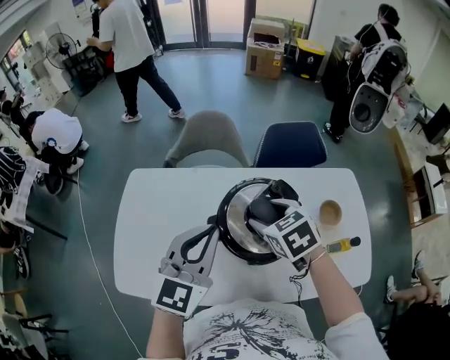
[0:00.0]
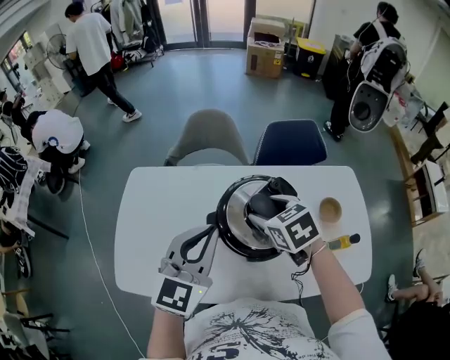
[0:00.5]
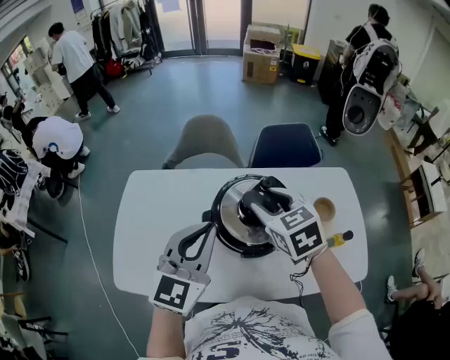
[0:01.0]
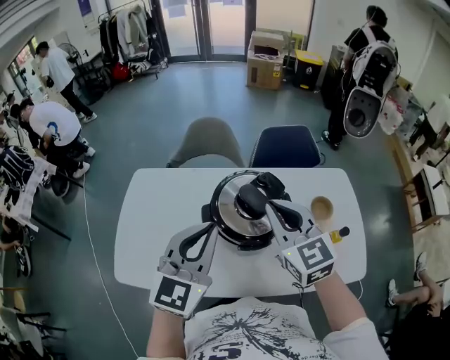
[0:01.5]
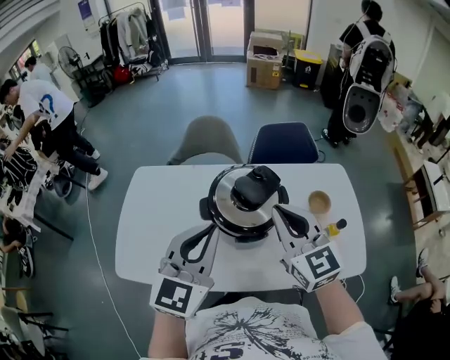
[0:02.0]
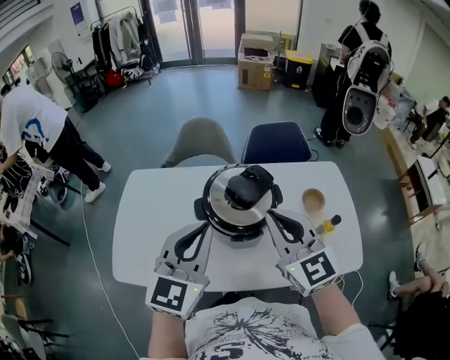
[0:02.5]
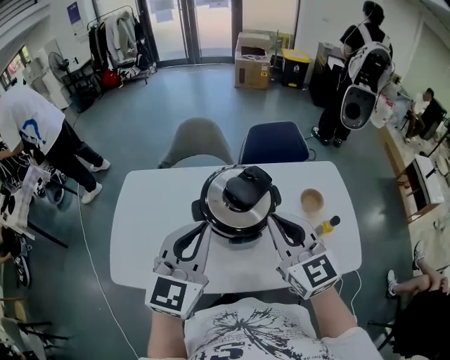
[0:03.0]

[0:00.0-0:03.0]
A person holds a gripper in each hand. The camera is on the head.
0:00.0 to 0:01.5: The right gripper heads upward and backward, covering roughly 15 cm, angles its fingers upward, by approximately 40 degrees, and closes its fingers, while the left gripper is displaced backward by roughly 10 cm.
0:01.5 to 0:03.0: The right gripper is displaced backward by approximately 5 cm.

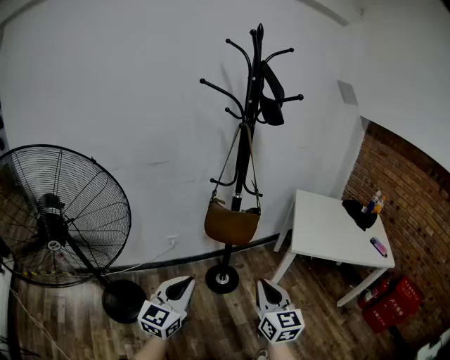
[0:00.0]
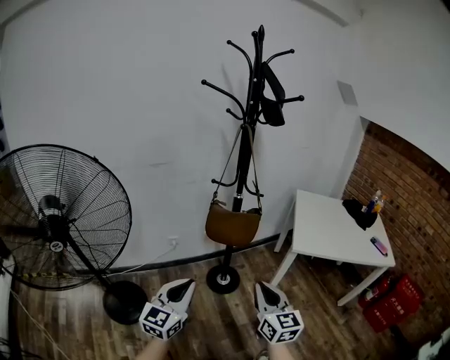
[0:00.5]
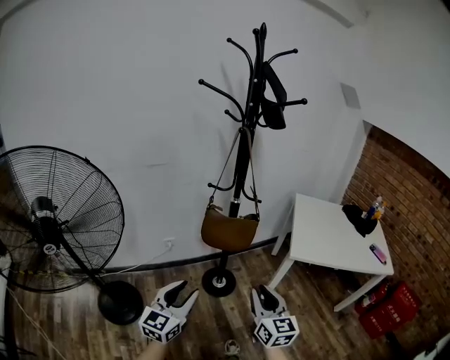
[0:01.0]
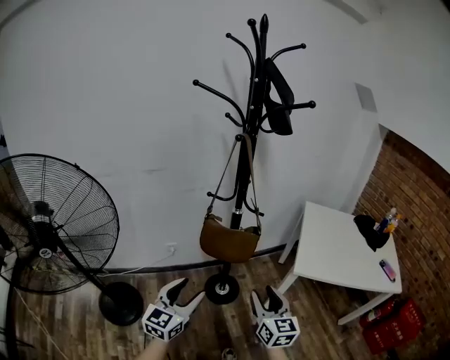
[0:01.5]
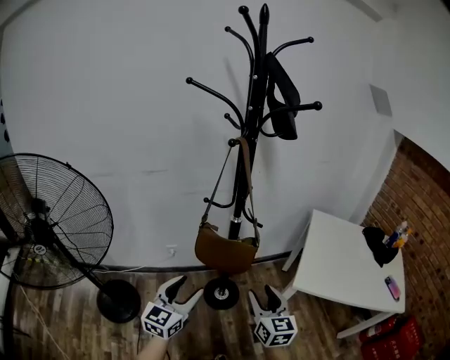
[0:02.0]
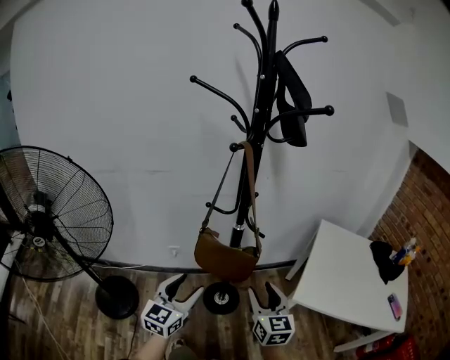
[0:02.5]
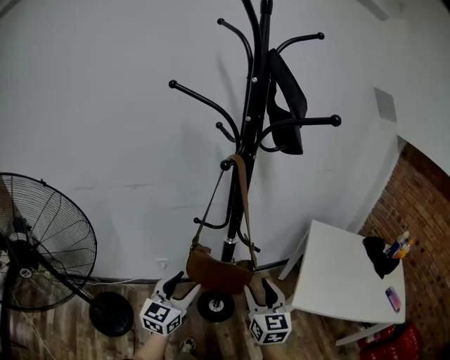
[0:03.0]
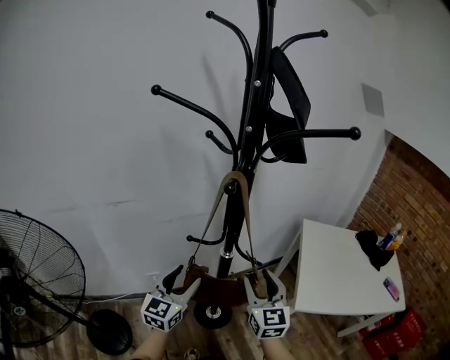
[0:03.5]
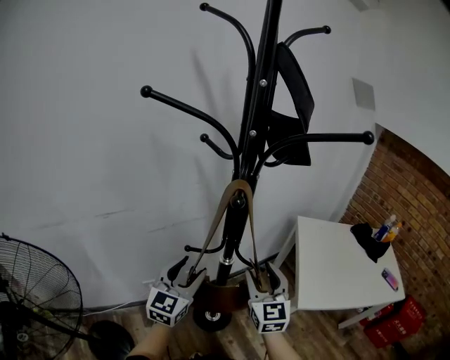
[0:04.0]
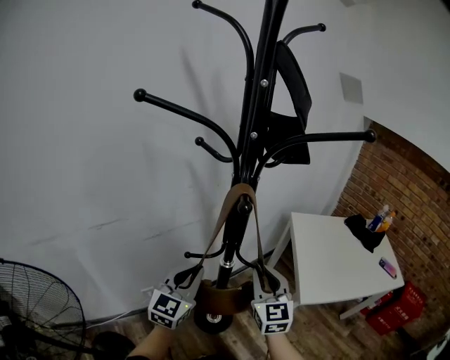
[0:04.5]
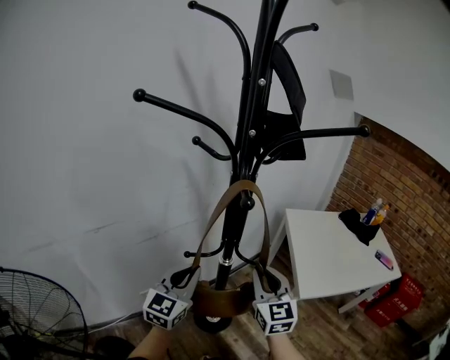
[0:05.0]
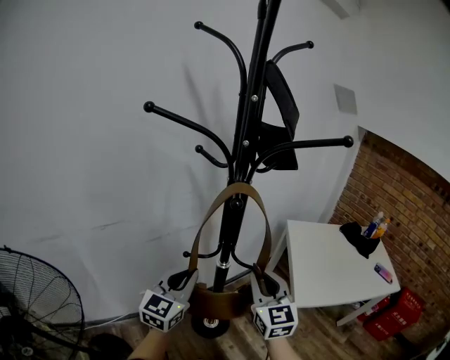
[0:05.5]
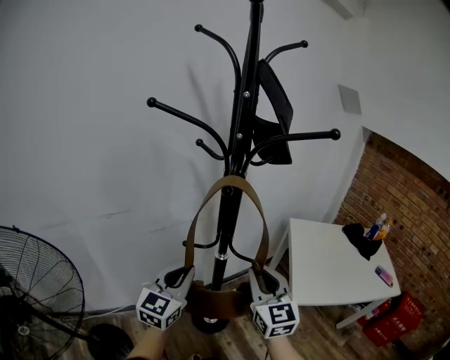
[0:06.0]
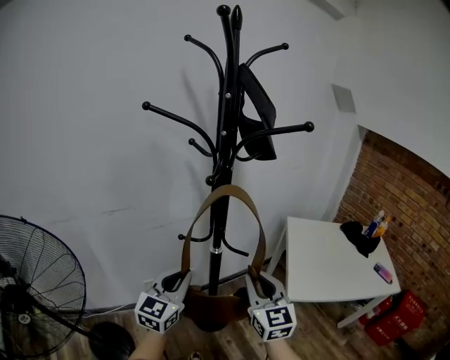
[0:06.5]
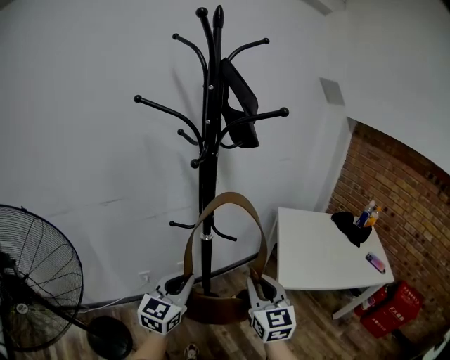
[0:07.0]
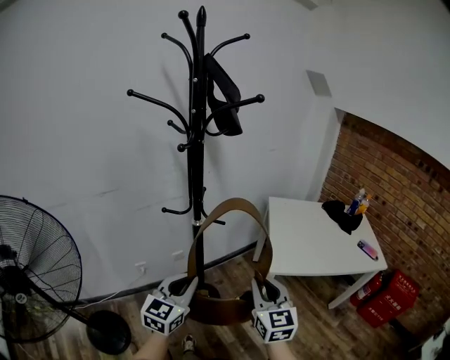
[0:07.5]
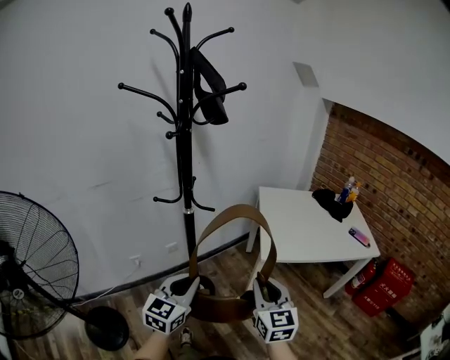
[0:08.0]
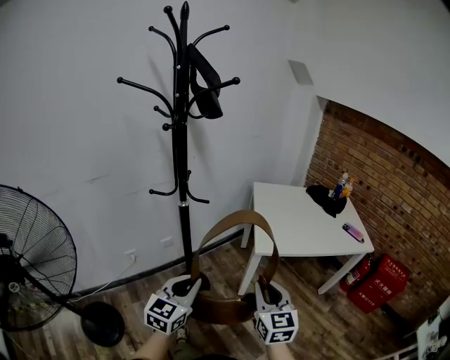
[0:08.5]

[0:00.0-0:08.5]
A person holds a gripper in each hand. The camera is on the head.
0:00.0 to 0:02.0: The grippers both shift forward by some 20 cm. The right gripper opens its fingers; the left gripper opens up.
0:02.0 to 0:04.0: Both grippers move forward, roughly 25 cm. The right gripper changes its angle by approximately 20 degrees.
0:04.0 to 0:06.5: Both grippers travel together backward, some 10 cm. The left gripper closes up, while the right gripper closes.
0:06.5 to 0:08.5: The left gripper moves to the right, backward and downward, roughly 25 cm. The right gripper heads backward, to the right and downward, covering approximately 30 cm.

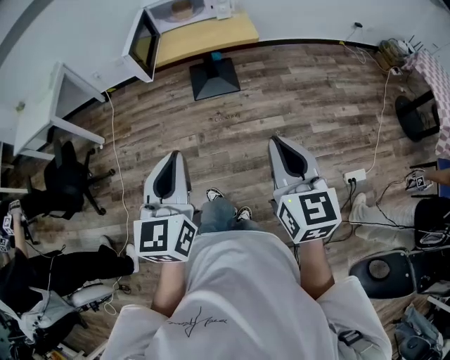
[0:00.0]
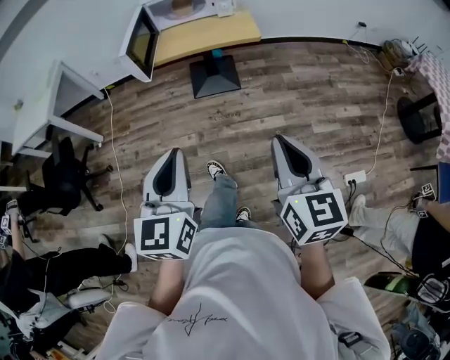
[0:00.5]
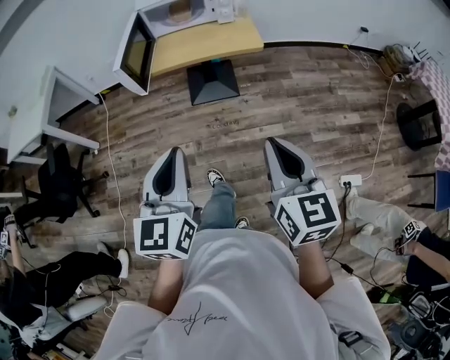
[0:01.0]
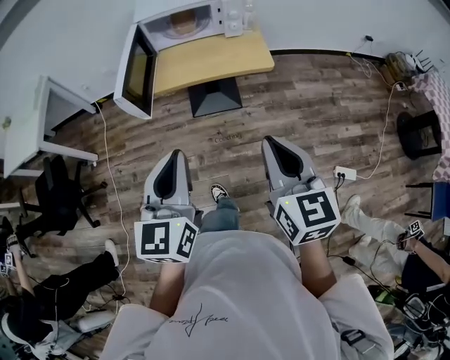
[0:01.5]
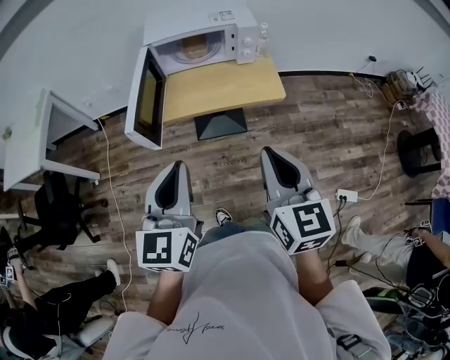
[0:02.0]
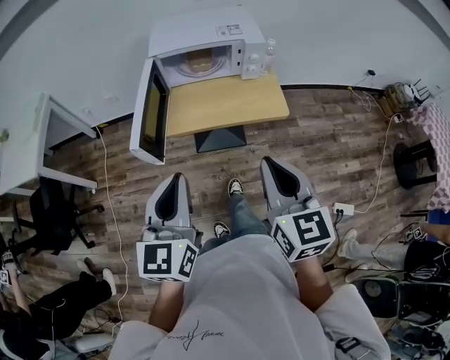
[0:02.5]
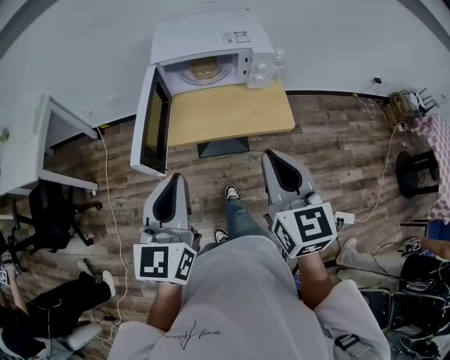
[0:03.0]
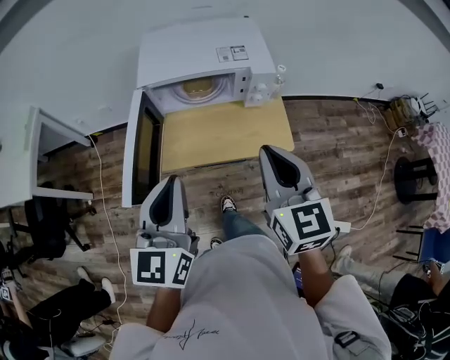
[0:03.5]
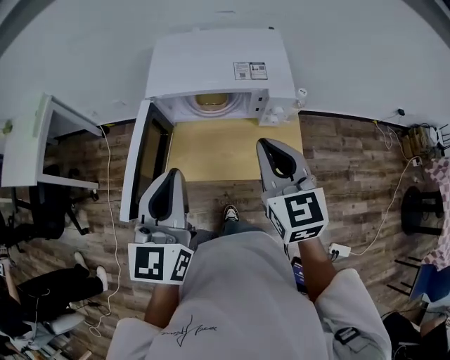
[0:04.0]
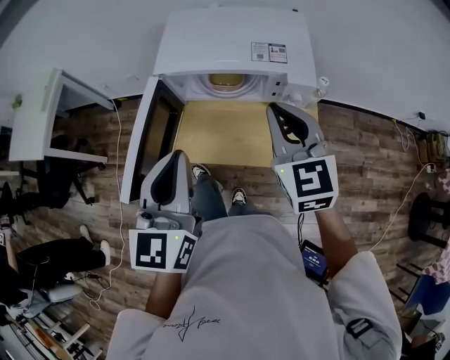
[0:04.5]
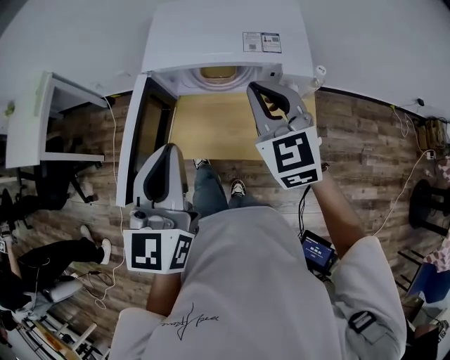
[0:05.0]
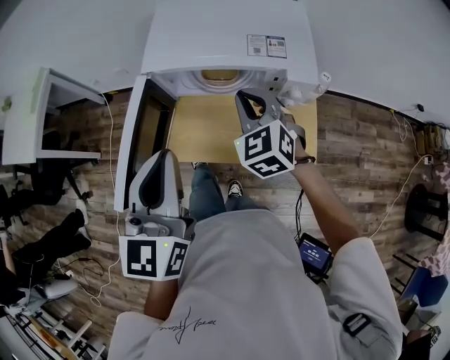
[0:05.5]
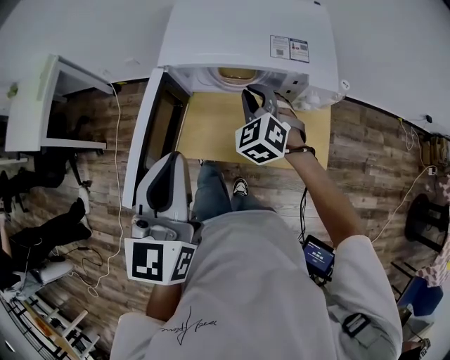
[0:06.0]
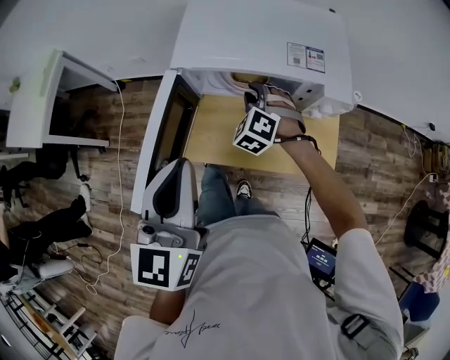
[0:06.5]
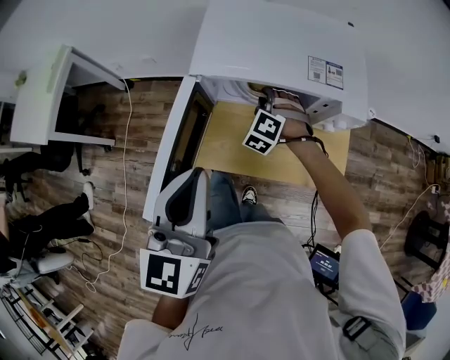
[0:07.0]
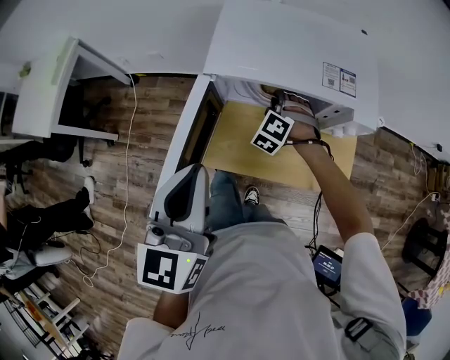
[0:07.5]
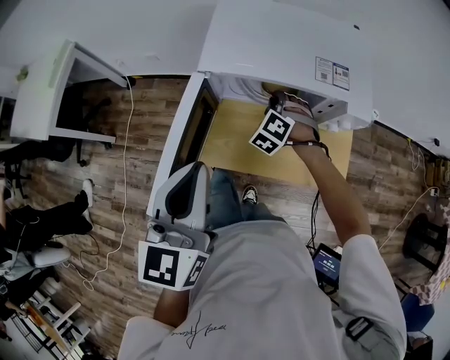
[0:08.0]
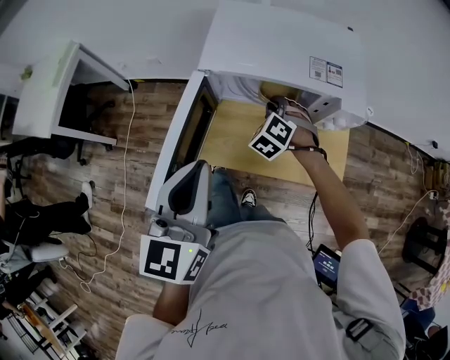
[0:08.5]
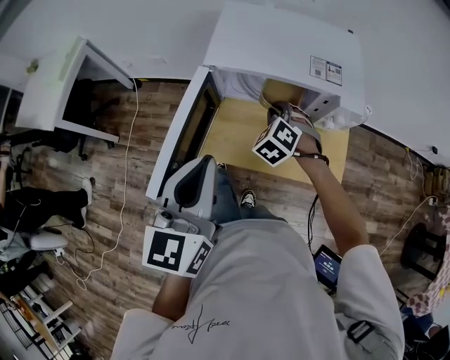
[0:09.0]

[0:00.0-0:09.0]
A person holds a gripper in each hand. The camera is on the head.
0:00.0 to 0:02.0: The two grippers go about 35 cm forward.
0:02.0 to 0:04.5: The two grippers go about 35 cm forward. The right gripper turns by roughly 20 degrees.
0:04.5 to 0:07.0: The left gripper moves to the left, some 5 cm; the right gripper moves downward, forward and to the left, roughly 30 cm, twists approximately 50 degrees counterclockwise, seen from behind, and opens its fingers.
0:07.0 to 0:09.0: The right gripper goes some 5 cm backward.

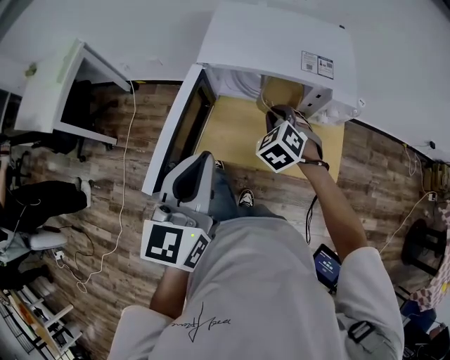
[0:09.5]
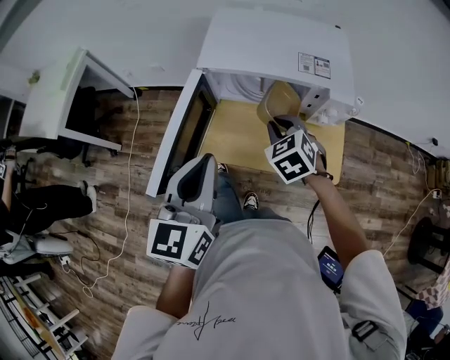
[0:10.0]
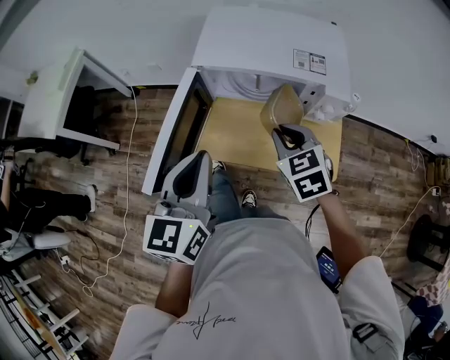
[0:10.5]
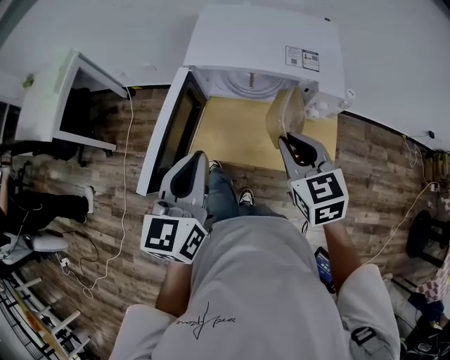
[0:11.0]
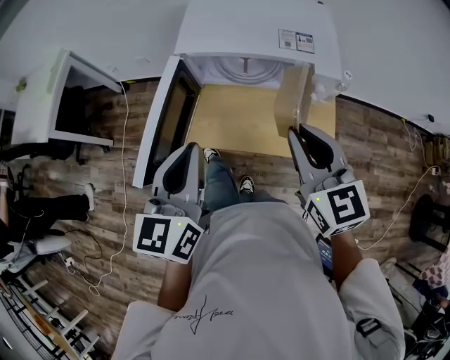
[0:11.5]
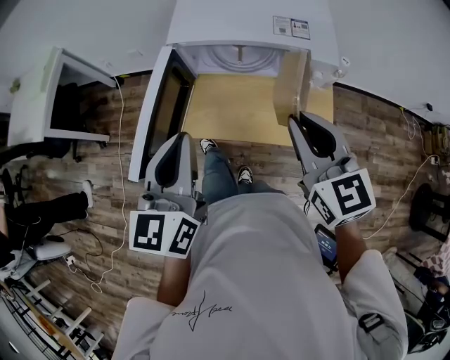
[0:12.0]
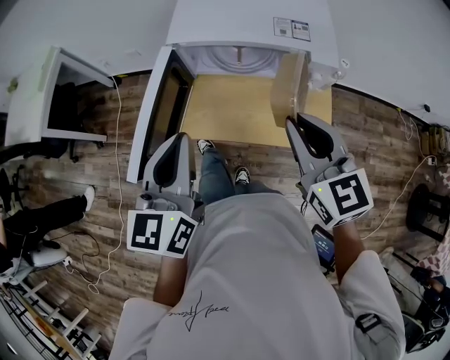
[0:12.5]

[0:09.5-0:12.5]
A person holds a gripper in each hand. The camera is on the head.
0:09.5 to 0:11.0: The right gripper moves upward and backward, roughly 15 cm, and turns by about 40 degrees.
0:11.0 to 0:12.5: The right gripper travels upward by approximately 5 cm.

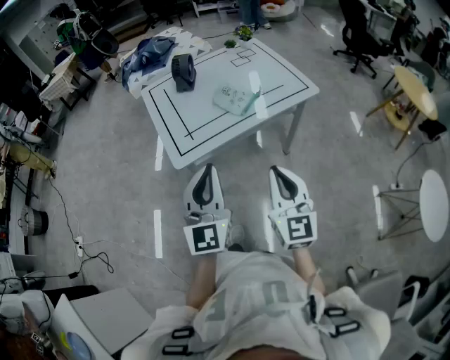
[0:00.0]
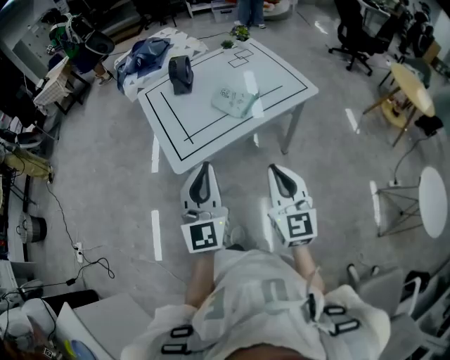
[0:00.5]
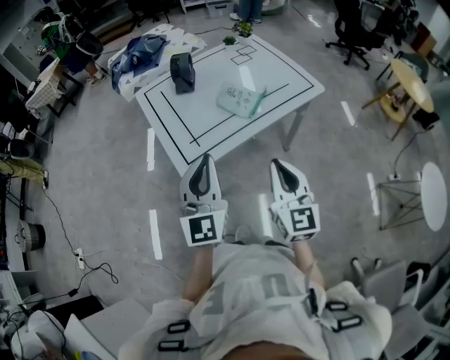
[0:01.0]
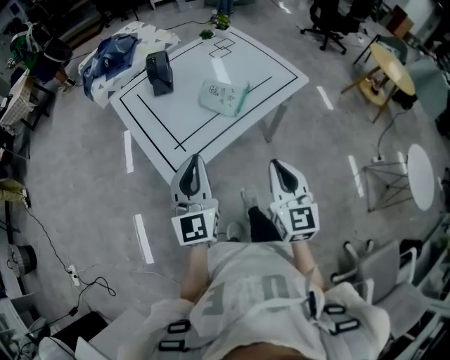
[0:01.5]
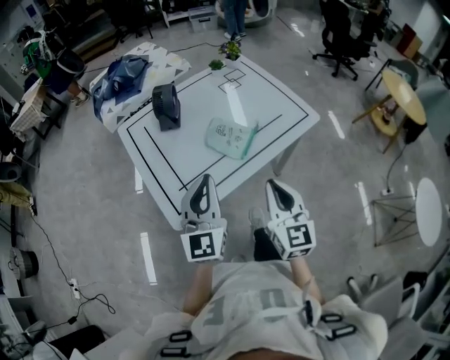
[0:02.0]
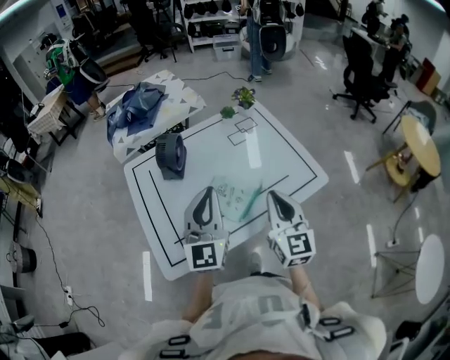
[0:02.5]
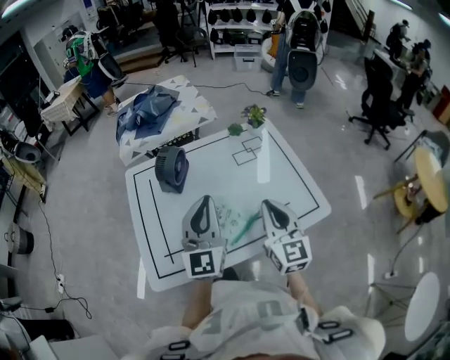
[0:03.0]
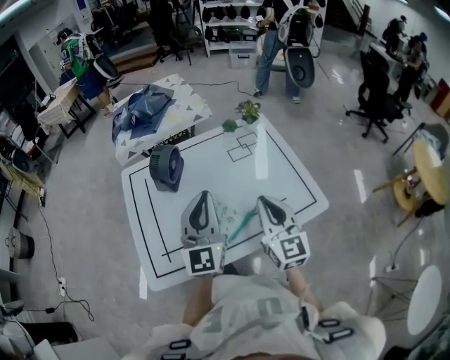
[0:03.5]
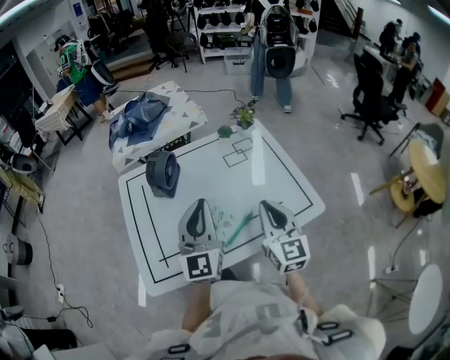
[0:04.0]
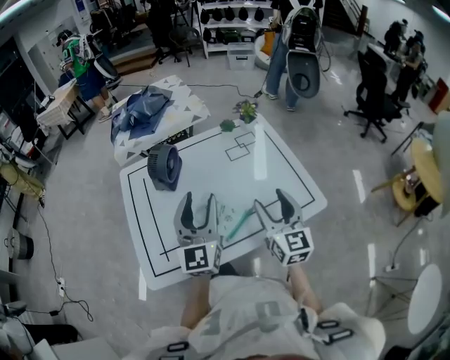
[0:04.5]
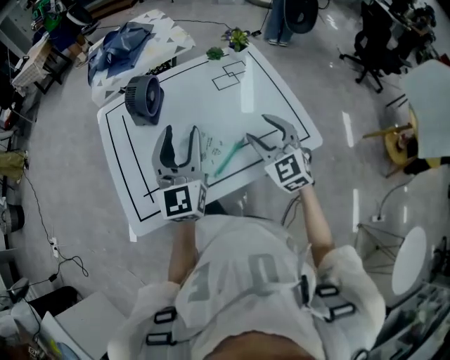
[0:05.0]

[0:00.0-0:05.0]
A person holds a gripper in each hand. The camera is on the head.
0:00.0 to 0:02.5: Both grippers move forward, some 40 cm.
0:02.5 to 0:05.0: The left gripper moves forward, roughly 5 cm, and opens up, while the right gripper travels forward and downward by some 10 cm, changes its angle by roughly 40 degrees, and opens up.
